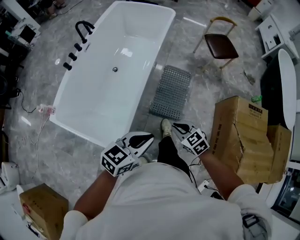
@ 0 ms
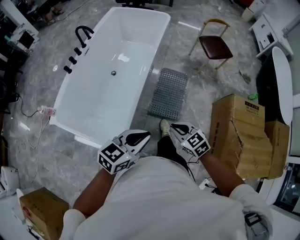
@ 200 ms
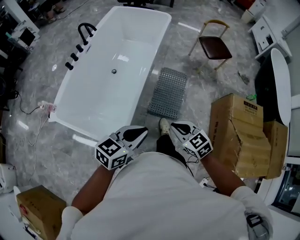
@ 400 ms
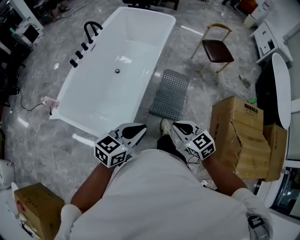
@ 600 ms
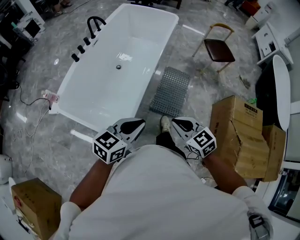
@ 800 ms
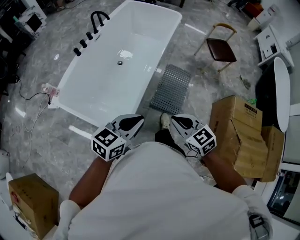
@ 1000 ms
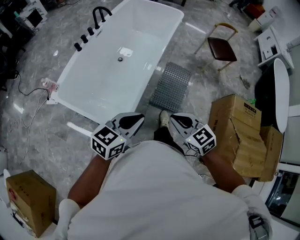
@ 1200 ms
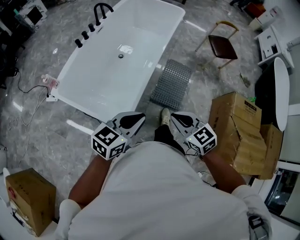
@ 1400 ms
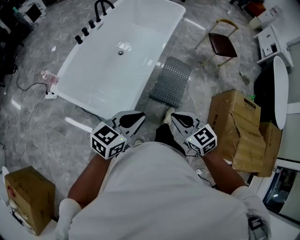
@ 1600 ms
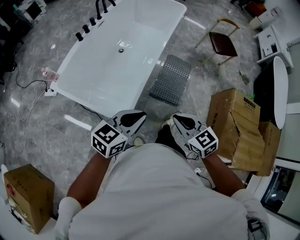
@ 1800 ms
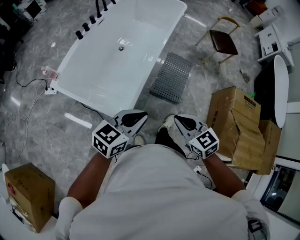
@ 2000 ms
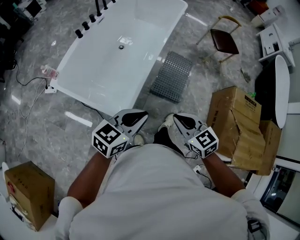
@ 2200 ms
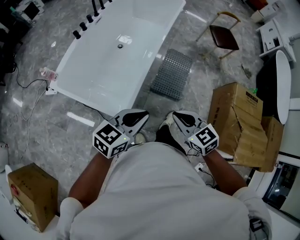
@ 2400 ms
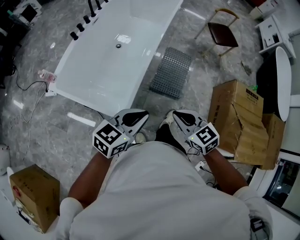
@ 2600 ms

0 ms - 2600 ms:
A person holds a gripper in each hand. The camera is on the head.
0 ms - 1200 ms: The right gripper heads upward, backward and to the left, covering roughly 20 cm, while the left gripper moves to the left and backward, approximately 10 cm.
1200 ms - 2600 ms: The grippers stay close to where they were, moving slightly.

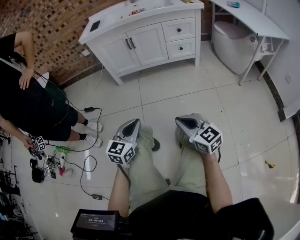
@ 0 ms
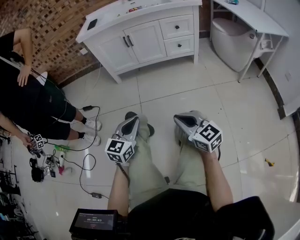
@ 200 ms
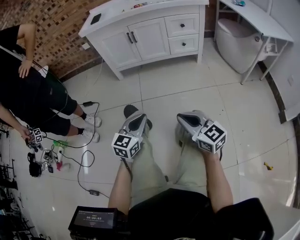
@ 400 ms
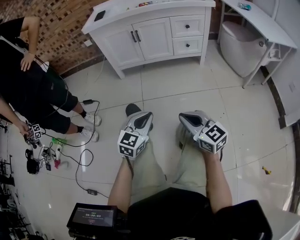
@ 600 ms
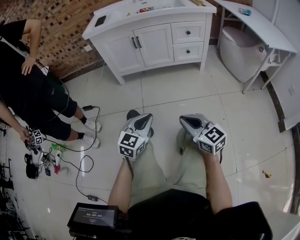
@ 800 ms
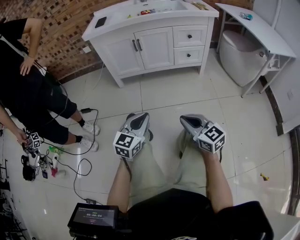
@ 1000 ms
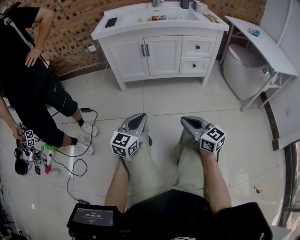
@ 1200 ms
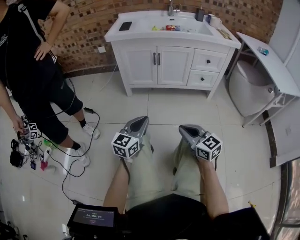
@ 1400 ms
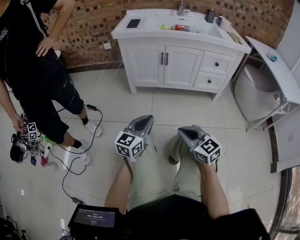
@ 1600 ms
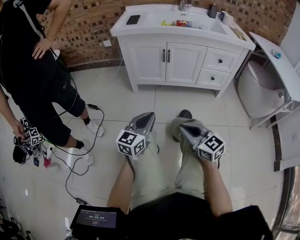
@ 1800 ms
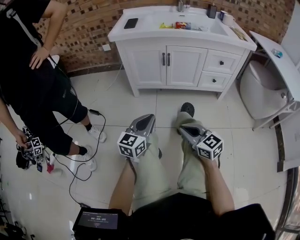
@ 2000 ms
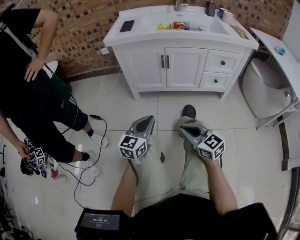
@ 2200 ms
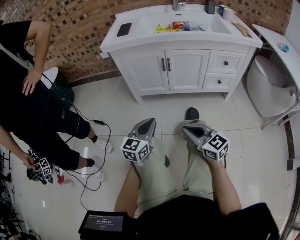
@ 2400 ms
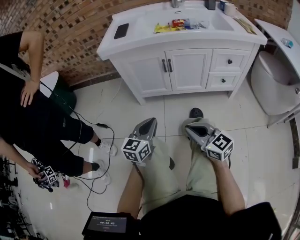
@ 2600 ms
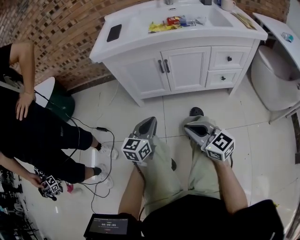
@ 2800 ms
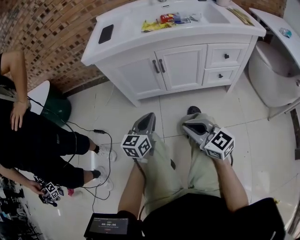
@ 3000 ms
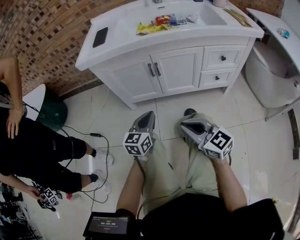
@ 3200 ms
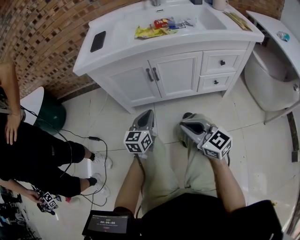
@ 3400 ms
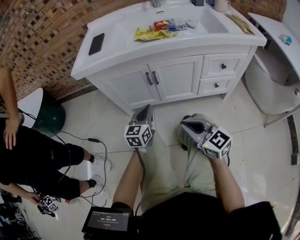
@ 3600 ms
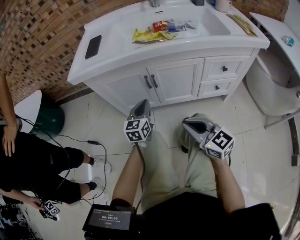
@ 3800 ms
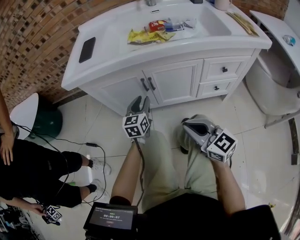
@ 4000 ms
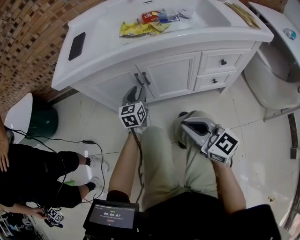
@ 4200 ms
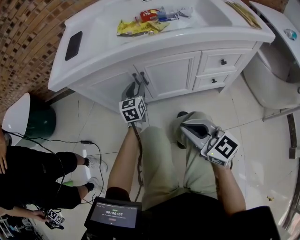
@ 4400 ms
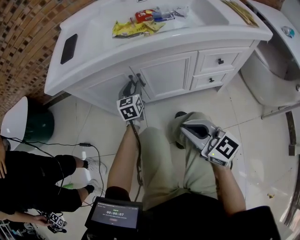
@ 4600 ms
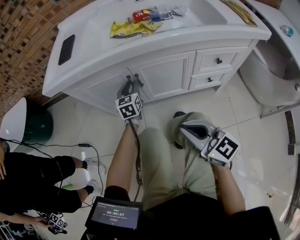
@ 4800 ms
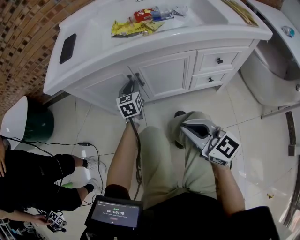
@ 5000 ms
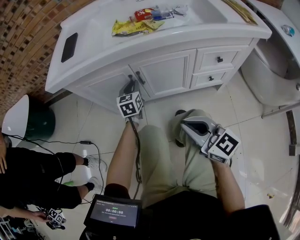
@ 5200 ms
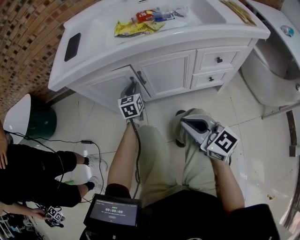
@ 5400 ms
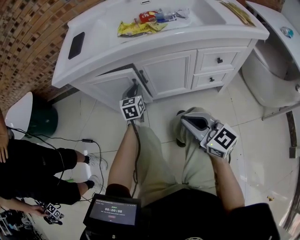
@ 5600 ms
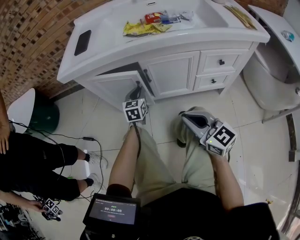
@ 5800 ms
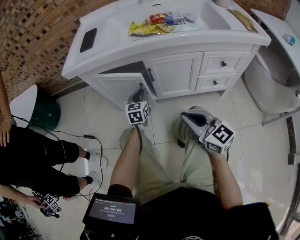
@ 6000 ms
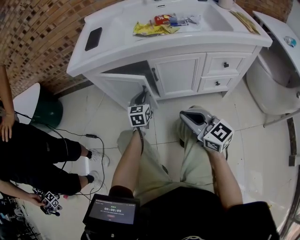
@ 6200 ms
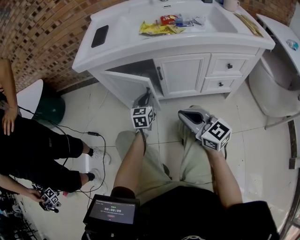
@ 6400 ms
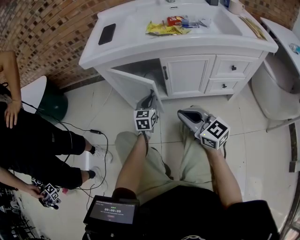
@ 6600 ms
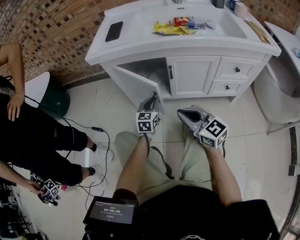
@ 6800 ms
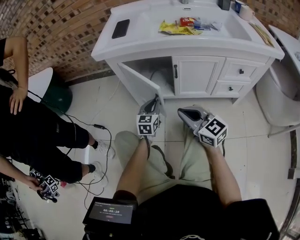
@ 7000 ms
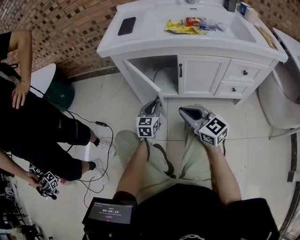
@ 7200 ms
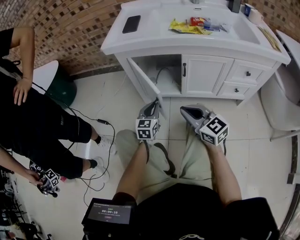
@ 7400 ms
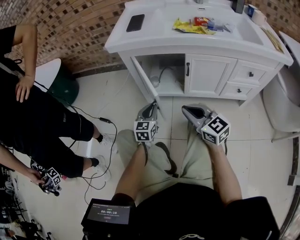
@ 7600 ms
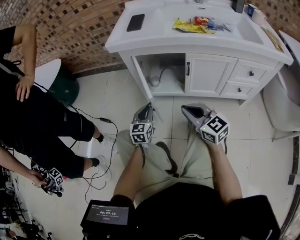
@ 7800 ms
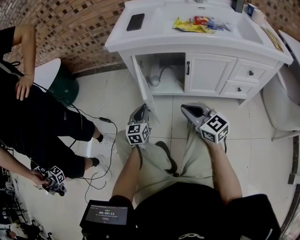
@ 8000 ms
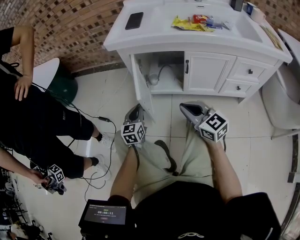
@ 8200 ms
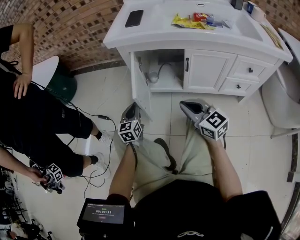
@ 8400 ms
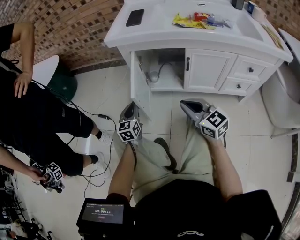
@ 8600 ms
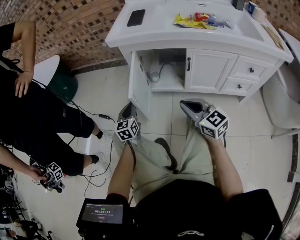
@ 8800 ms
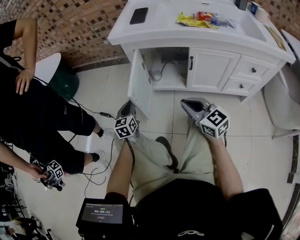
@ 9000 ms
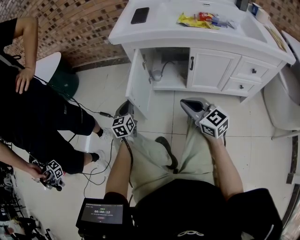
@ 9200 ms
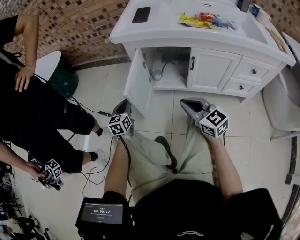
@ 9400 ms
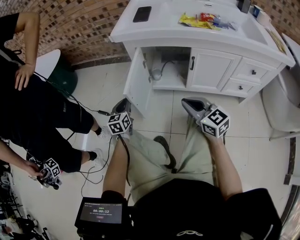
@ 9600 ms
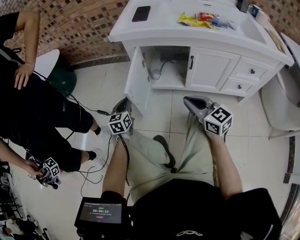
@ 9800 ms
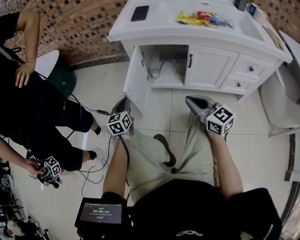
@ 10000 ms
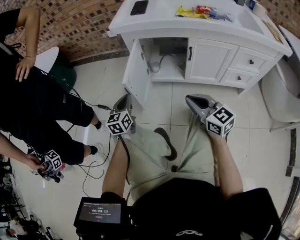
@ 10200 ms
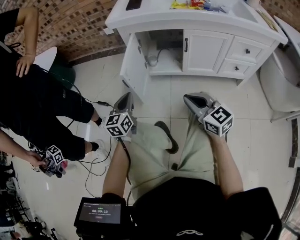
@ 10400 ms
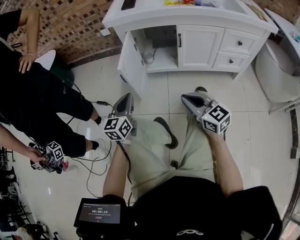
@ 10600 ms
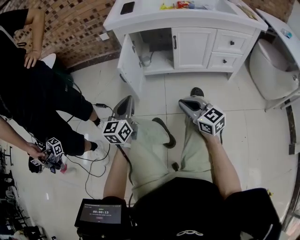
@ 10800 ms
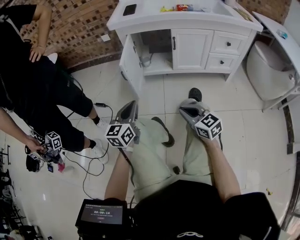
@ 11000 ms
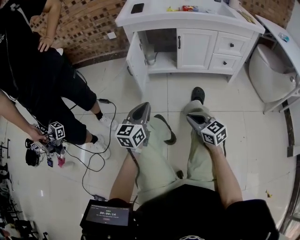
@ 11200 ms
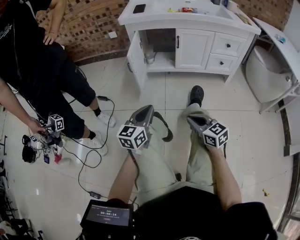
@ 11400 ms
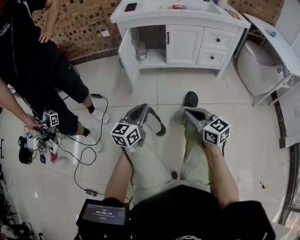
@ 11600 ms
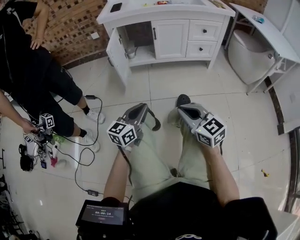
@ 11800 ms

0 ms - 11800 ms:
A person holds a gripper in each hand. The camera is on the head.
0 ms - 1400 ms: Both grippers travel together forward, approximately 15 cm.
1400 ms - 3000 ms: The grippers both shift forward by roughly 25 cm.
3000 ms - 4400 ms: The left gripper moves forward, roughly 30 cm, and opens. The right gripper is displaced forward and to the right by roughly 15 cm.
4400 ms - 6000 ms: The left gripper shifts by some 5 cm, and closes.
6000 ms - 7400 ms: The right gripper moves to the left, about 15 cm; the left gripper heads to the left and backward, covering approximately 15 cm.
7400 ms - 8800 ms: The left gripper goes roughly 15 cm to the left.
8800 ms - 10400 ms: The left gripper goes about 10 cm backward and upward. Meanwhile the right gripper travels backward by about 10 cm.
10400 ms - 11800 ms: The two grippers go approximately 35 cm backward. The left gripper changes its angle by about 30 degrees.

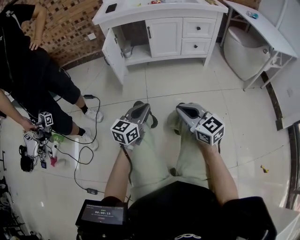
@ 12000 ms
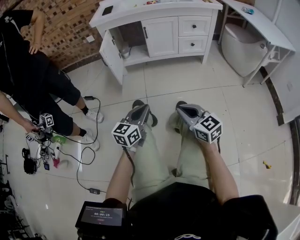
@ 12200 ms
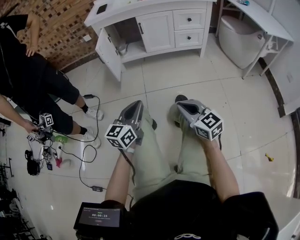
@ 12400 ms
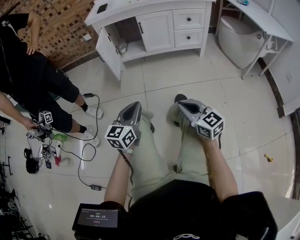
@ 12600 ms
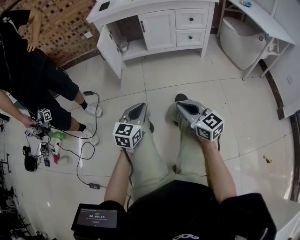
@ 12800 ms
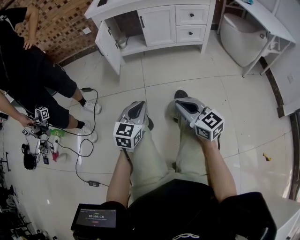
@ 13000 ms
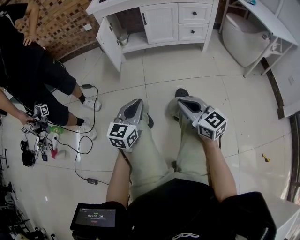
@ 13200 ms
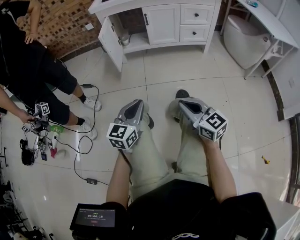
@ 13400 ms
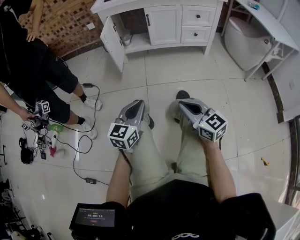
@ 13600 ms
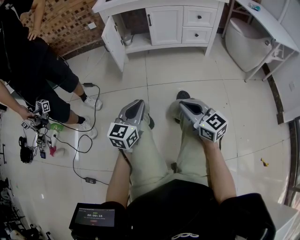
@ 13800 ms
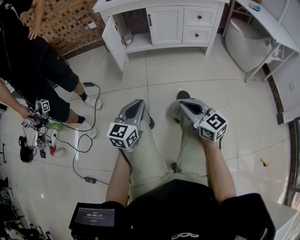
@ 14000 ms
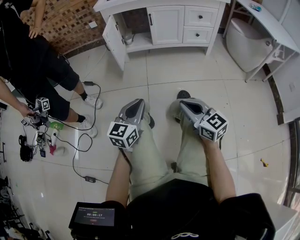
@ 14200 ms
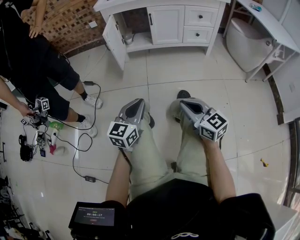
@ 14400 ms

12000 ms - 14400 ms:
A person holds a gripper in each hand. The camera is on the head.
12000 ms - 13200 ms: The left gripper goes about 5 cm backward. The right gripper changes place by roughly 5 cm.
13200 ms - 14400 ms: The two grippers keep their place.

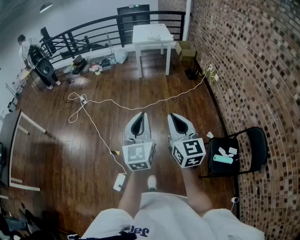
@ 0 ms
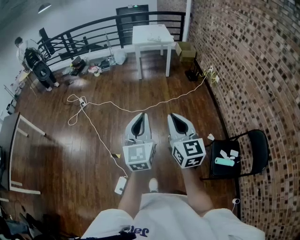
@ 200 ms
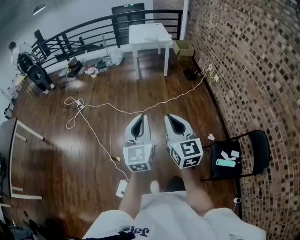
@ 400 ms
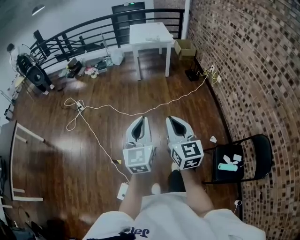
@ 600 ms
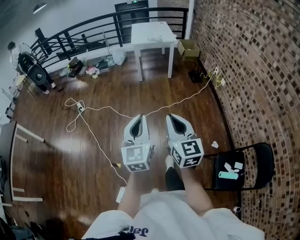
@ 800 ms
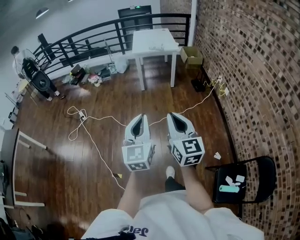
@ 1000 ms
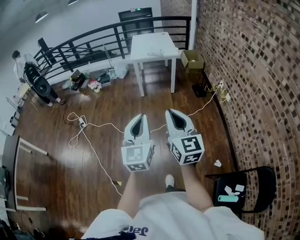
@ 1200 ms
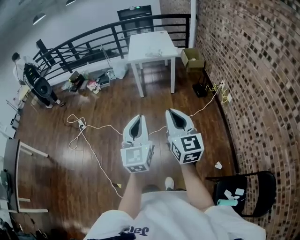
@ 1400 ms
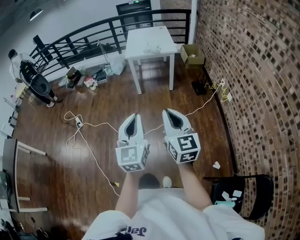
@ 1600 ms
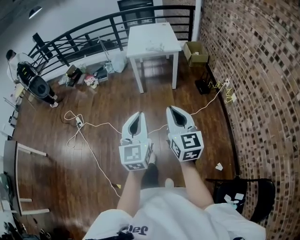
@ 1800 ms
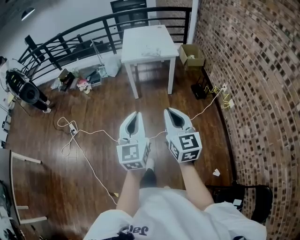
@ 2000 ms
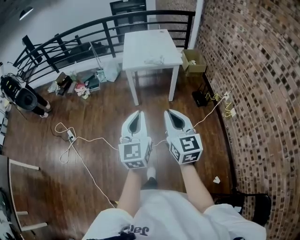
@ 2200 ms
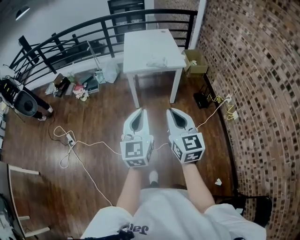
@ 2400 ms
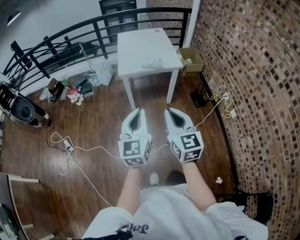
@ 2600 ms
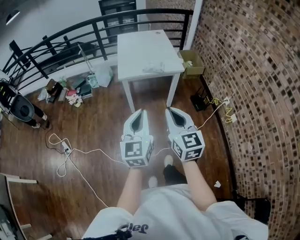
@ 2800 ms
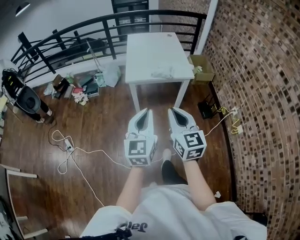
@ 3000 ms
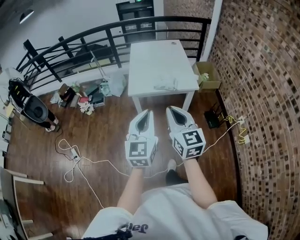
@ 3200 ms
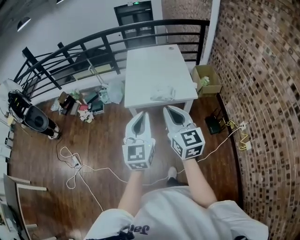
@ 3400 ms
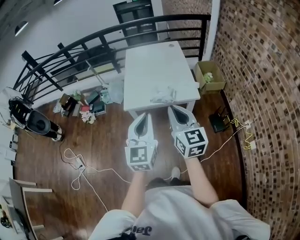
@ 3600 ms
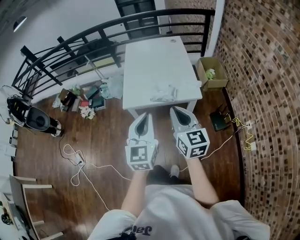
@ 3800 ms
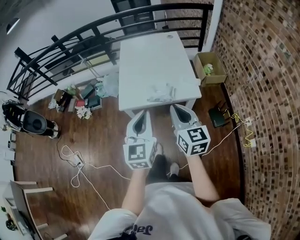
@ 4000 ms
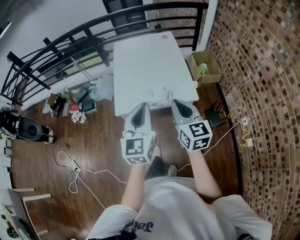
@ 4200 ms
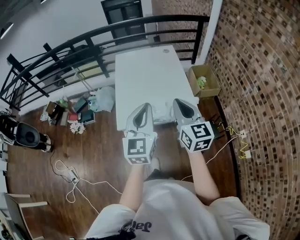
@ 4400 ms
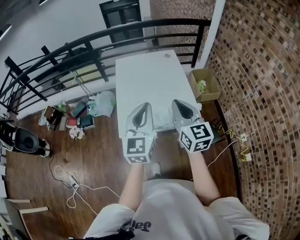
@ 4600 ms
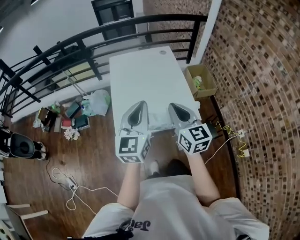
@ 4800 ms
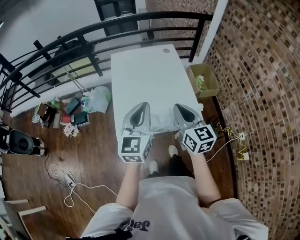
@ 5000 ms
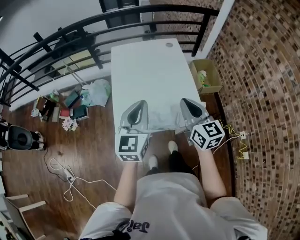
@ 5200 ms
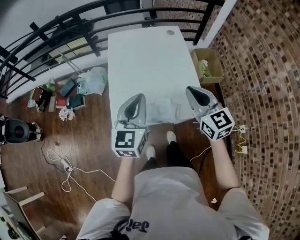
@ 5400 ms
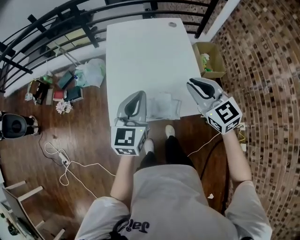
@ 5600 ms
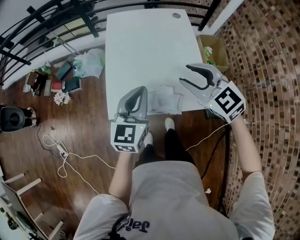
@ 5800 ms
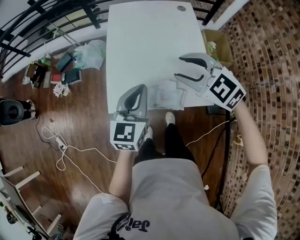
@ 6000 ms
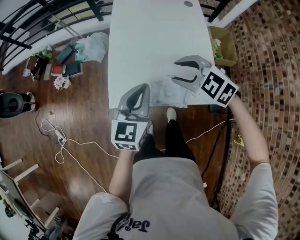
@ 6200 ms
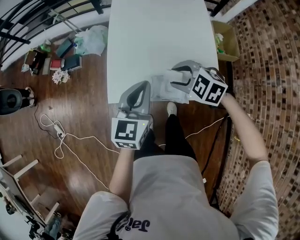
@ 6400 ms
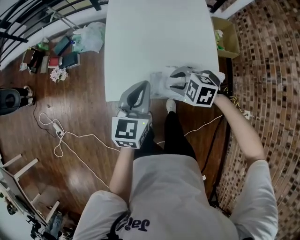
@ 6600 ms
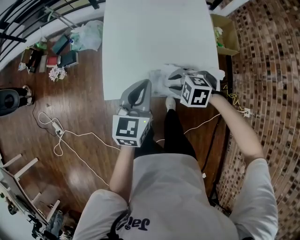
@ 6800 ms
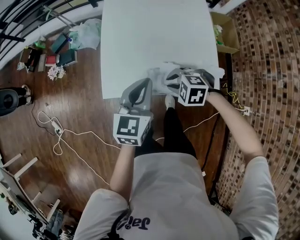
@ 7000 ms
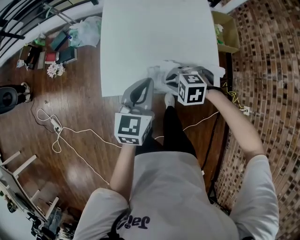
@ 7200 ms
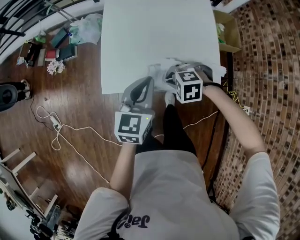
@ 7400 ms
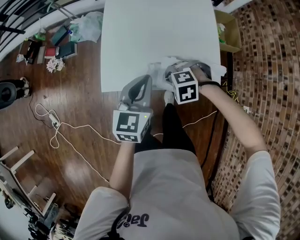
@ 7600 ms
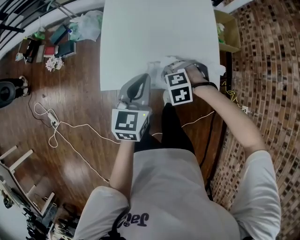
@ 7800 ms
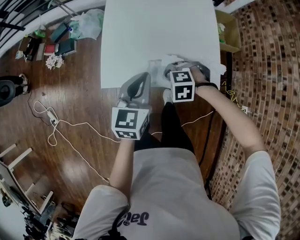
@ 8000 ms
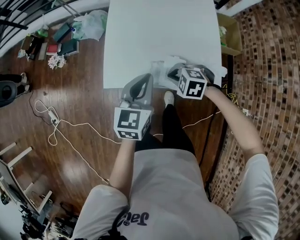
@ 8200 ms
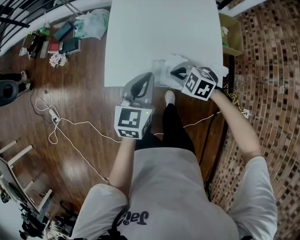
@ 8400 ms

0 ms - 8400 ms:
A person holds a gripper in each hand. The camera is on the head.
0 ms - 1400 ms: Both grippers are carried forward, roughly 50 cm.
1400 ms - 2800 ms: Both grippers are carried forward, about 50 cm.
2800 ms - 4200 ms: The pair of grippers is taken forward, roughly 40 cm.
4200 ms - 5600 ms: The right gripper is displaced forward by approximately 20 cm, and changes its angle by about 30 degrees; the left gripper shifts some 25 cm forward and downward.
5600 ms - 7000 ms: The left gripper is displaced downward by some 10 cm, while the right gripper goes approximately 30 cm downward, tilts its fingers roughly 50 degrees downward, and opens and closes again.
